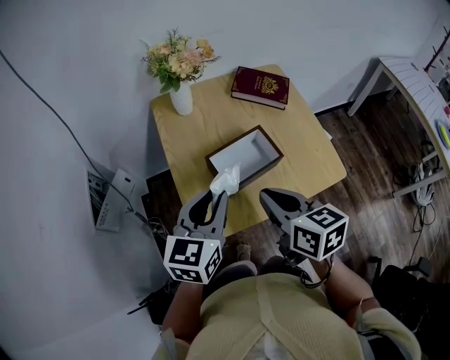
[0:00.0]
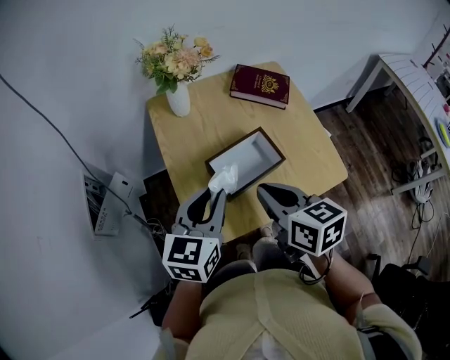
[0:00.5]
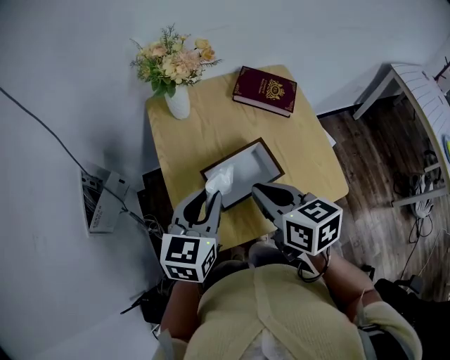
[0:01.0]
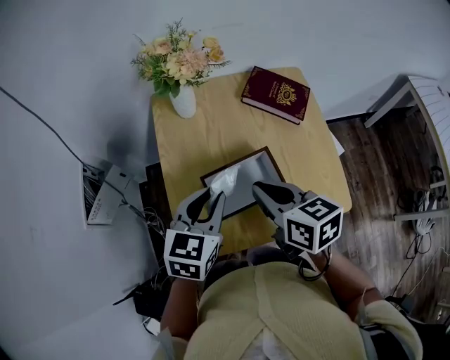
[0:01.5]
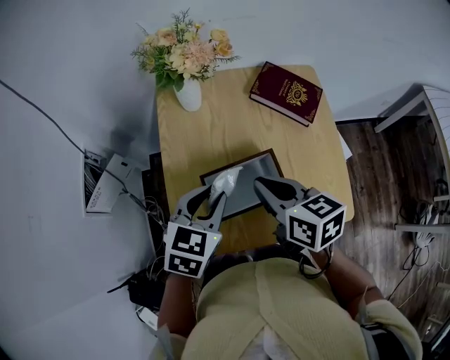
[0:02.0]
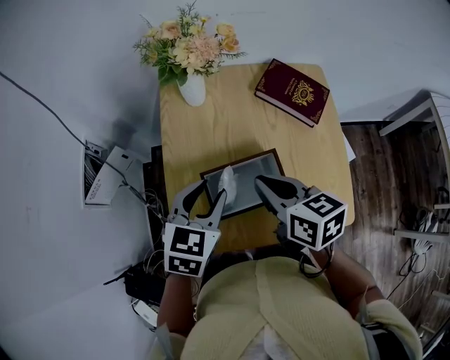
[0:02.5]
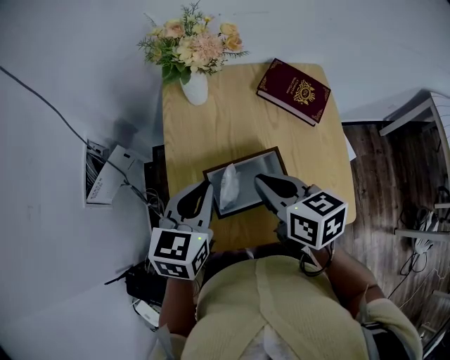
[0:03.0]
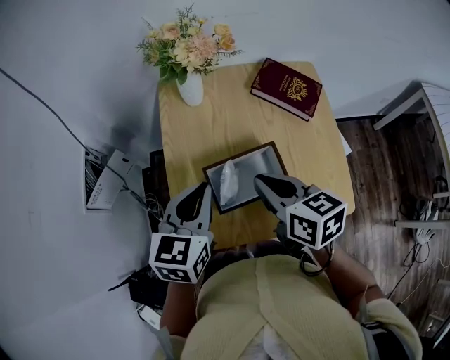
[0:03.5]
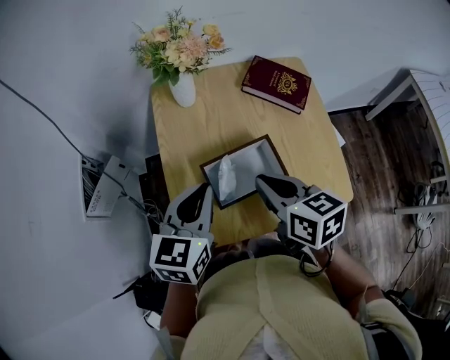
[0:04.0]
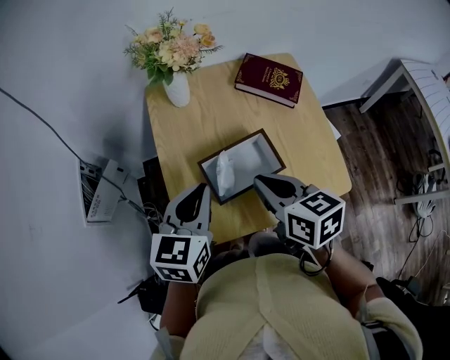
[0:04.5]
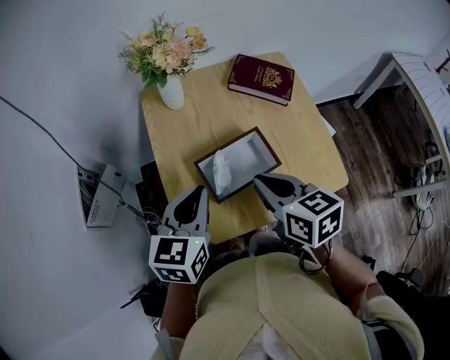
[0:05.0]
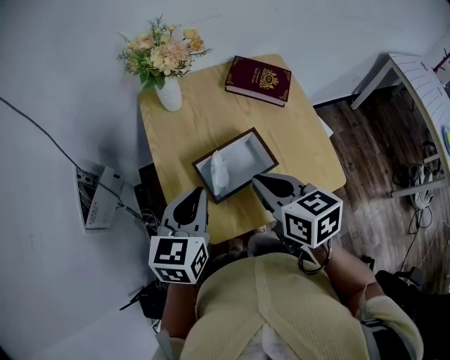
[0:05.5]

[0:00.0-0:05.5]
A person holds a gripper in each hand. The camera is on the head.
0:00.0 to 0:02.0: The left gripper heads forward and downward, covering about 10 cm, and swivels approximately 20 degrees. The right gripper travels forward by approximately 15 cm.
0:02.0 to 0:03.5: The left gripper shifts by approximately 5 cm, and opens, then closes again.
0:03.5 to 0:05.5: The grippers make only small movements.

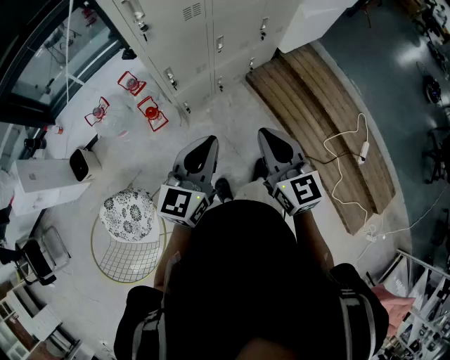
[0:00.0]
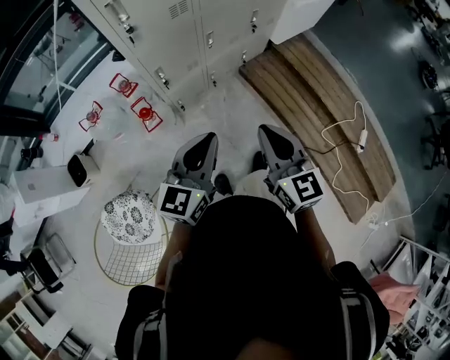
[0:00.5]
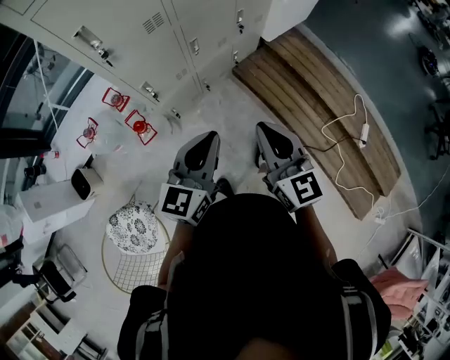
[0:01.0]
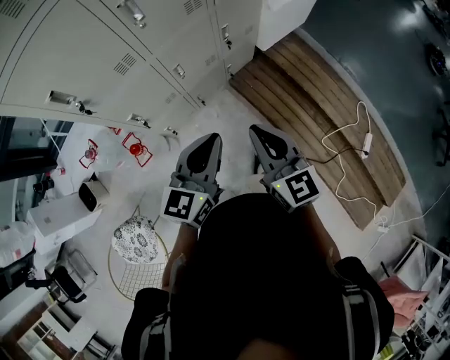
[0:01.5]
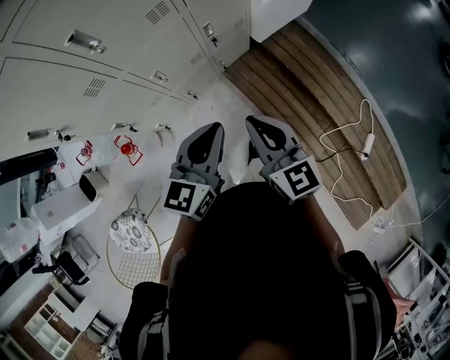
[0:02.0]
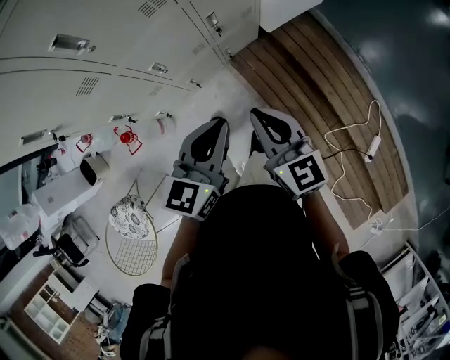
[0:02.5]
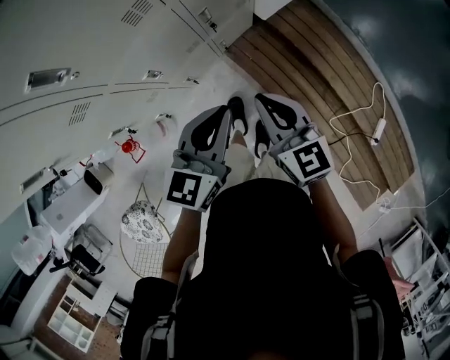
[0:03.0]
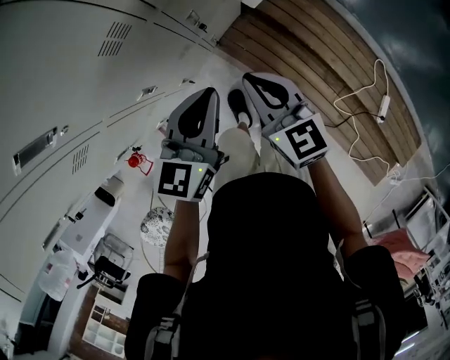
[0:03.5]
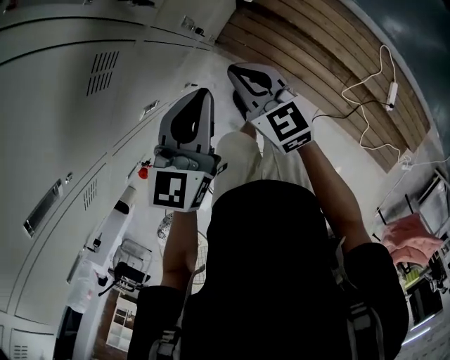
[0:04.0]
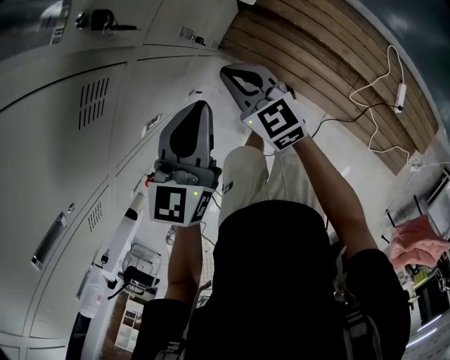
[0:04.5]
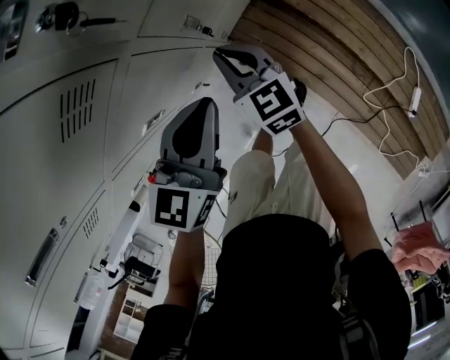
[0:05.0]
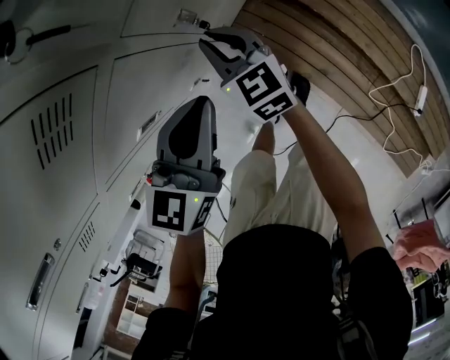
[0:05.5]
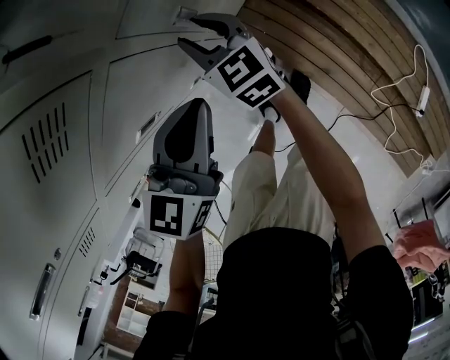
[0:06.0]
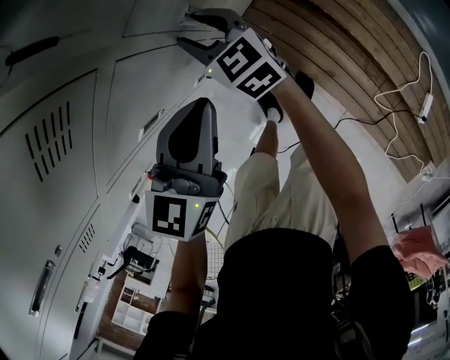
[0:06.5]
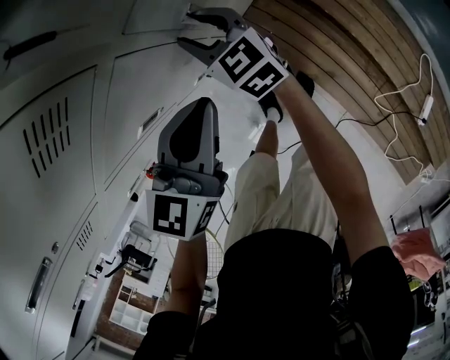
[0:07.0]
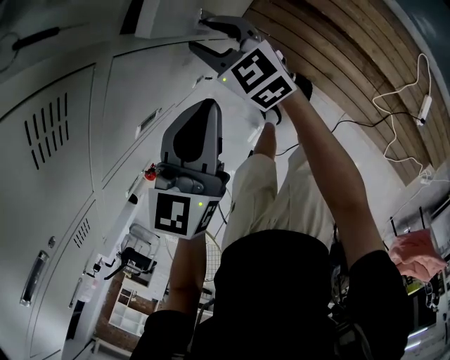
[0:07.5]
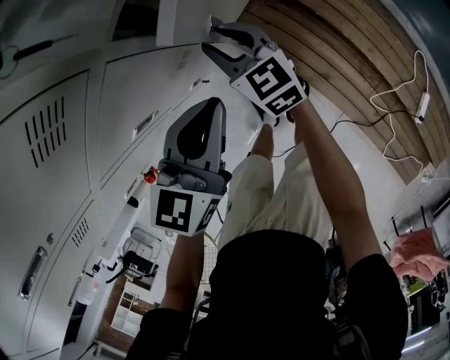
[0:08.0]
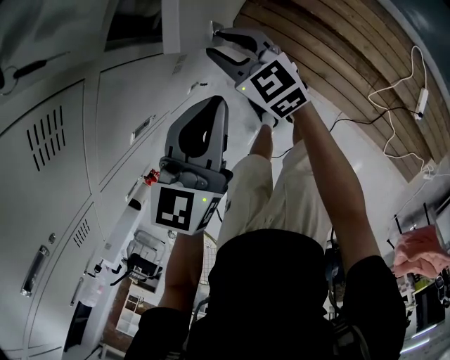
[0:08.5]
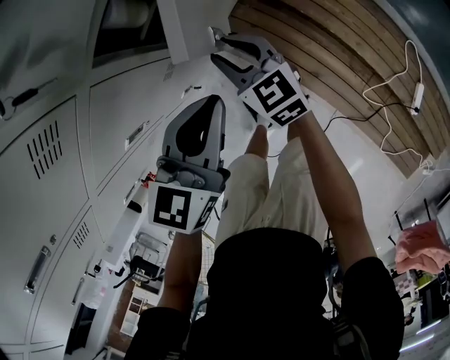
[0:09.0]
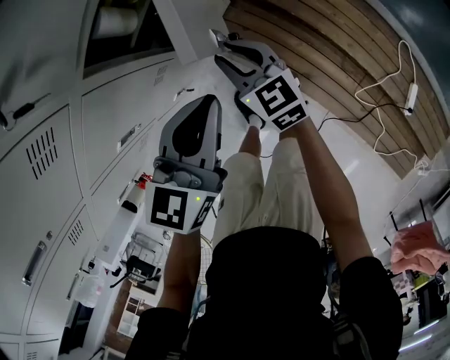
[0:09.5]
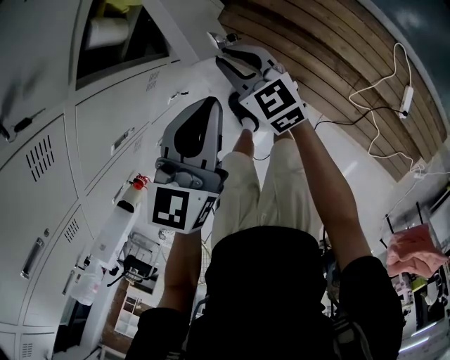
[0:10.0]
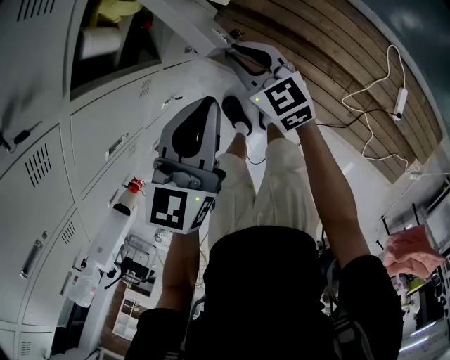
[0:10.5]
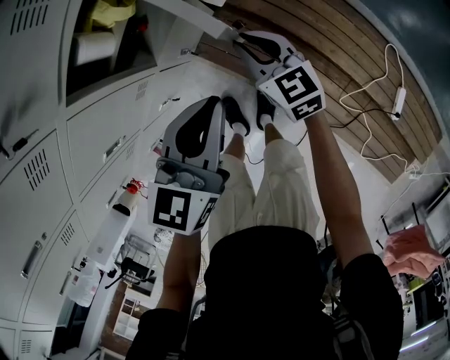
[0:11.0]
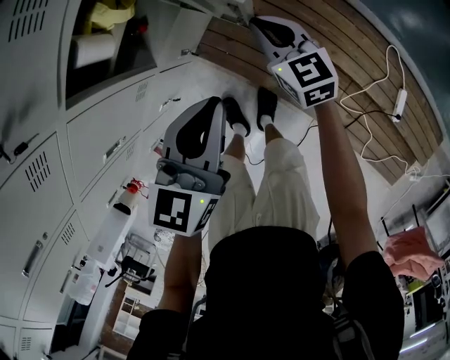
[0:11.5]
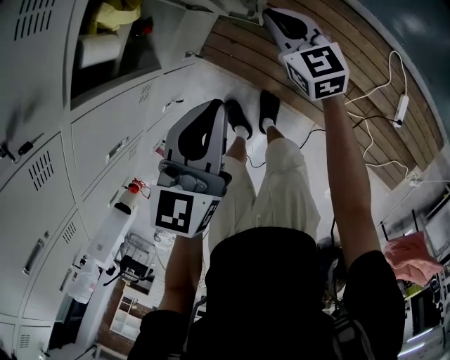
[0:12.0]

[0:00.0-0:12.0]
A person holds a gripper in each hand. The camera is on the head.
0:00.0 to 0:02.0: The left gripper travels to the right and forward by about 40 cm. Meanwhile the right gripper is displaced forward and to the right by about 35 cm.
0:02.0 to 0:04.0: Both grippers move forward and downward, roughly 30 cm.
0:04.0 to 0:06.0: The right gripper moves downward, forward and to the left, approximately 20 cm, and opens. Meanwhile the left gripper heads downward, covering roughly 10 cm.
0:06.0 to 0:08.0: The right gripper changes place by about 5 cm.
0:08.0 to 0:10.0: The two grippers go some 15 cm to the right.
0:10.0 to 0:12.0: The right gripper heads to the right and forward, covering approximately 20 cm. Meanwhile the left gripper heads to the right, covering some 5 cm.

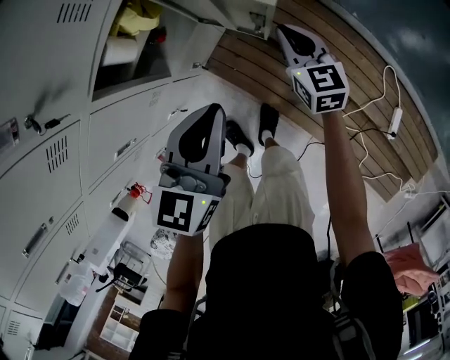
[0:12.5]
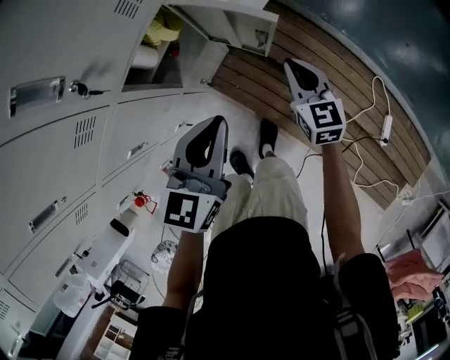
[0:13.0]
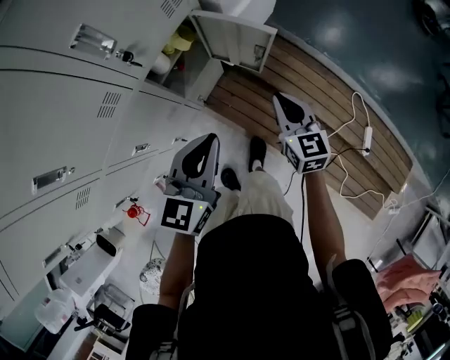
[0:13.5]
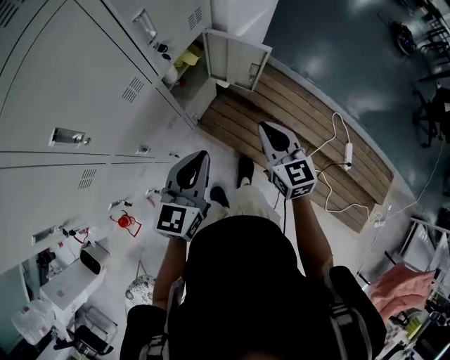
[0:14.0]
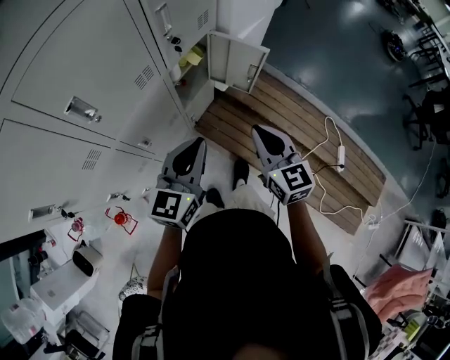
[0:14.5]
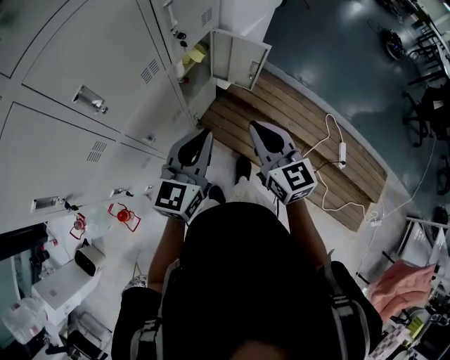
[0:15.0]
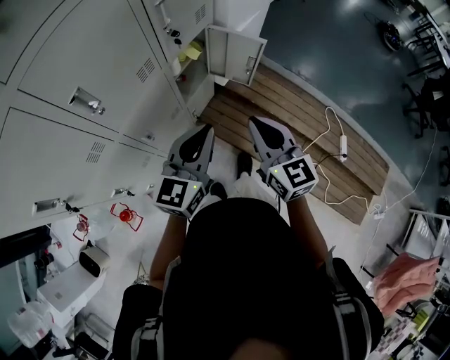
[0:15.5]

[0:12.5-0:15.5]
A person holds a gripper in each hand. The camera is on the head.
0:12.5 to 0:14.0: The right gripper is displaced backward and upward by roughly 35 cm. Meanwhile the left gripper shifts some 30 cm backward, to the left and upward.
0:14.0 to 0:15.5: The right gripper travels backward, upward and to the left by roughly 15 cm. Meanwhile the left gripper travels upward by approximately 5 cm.

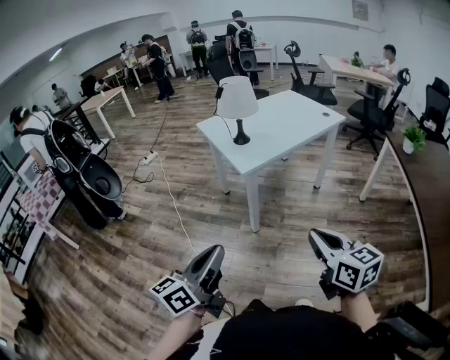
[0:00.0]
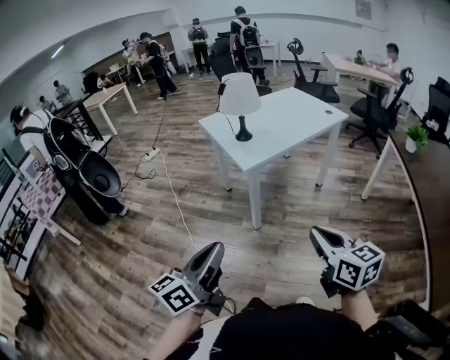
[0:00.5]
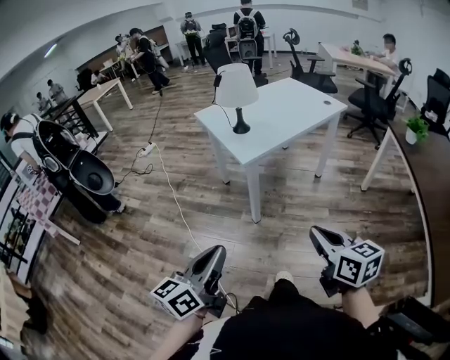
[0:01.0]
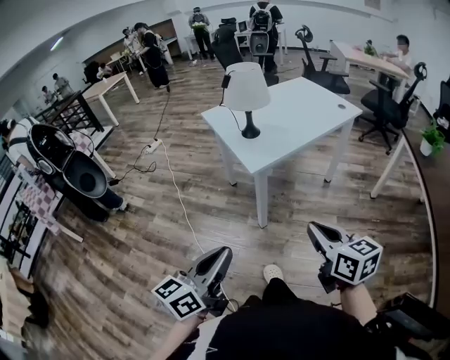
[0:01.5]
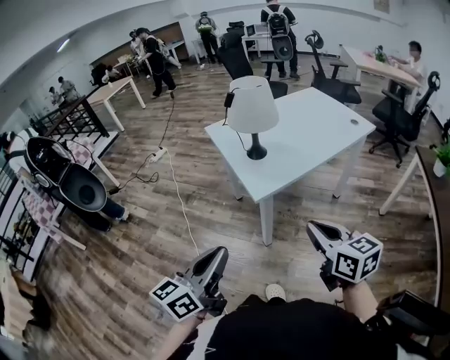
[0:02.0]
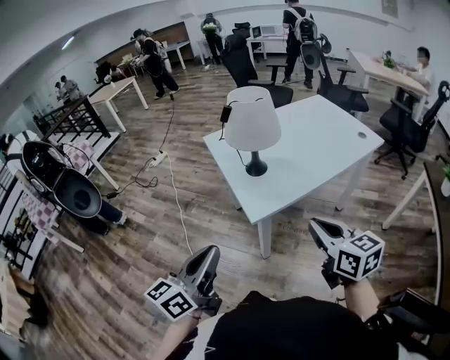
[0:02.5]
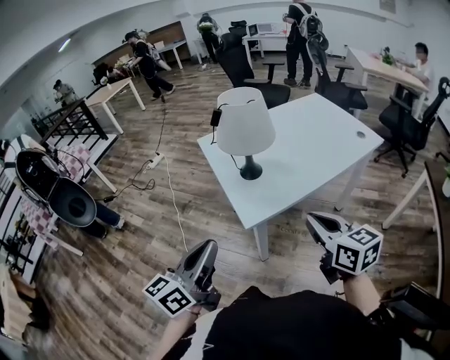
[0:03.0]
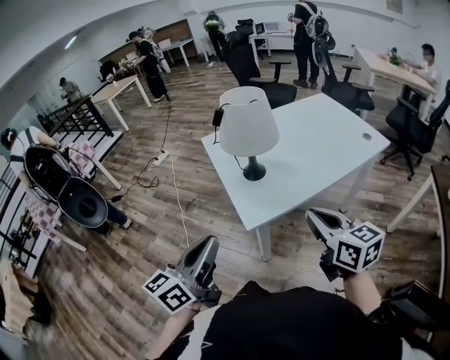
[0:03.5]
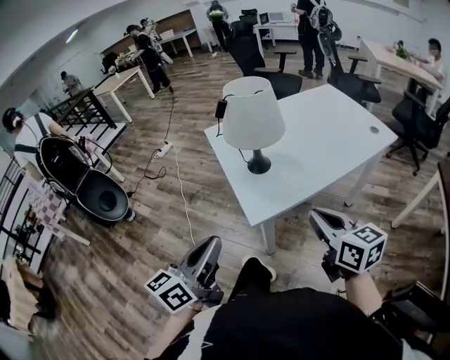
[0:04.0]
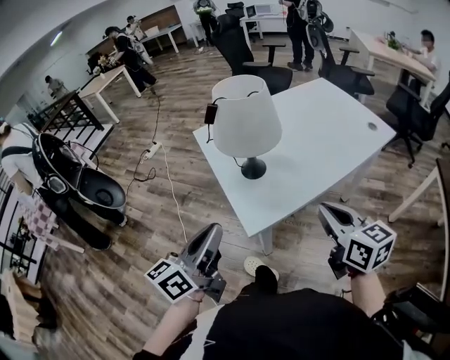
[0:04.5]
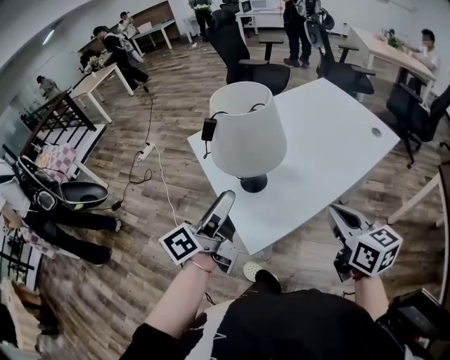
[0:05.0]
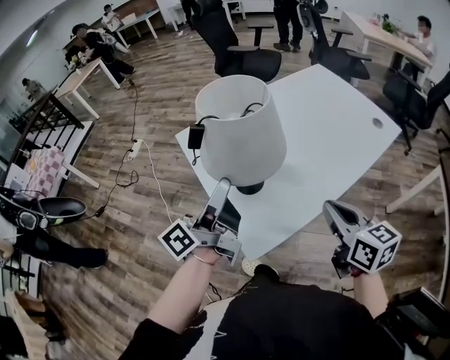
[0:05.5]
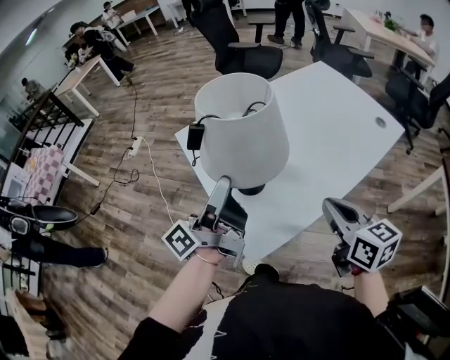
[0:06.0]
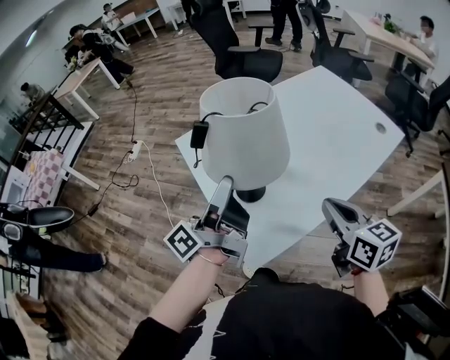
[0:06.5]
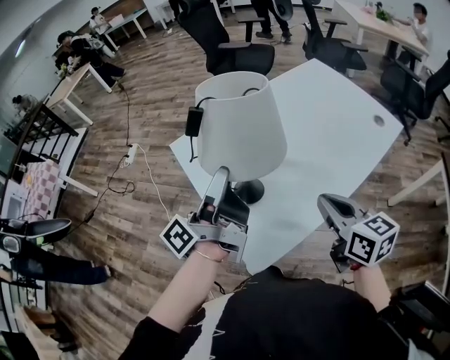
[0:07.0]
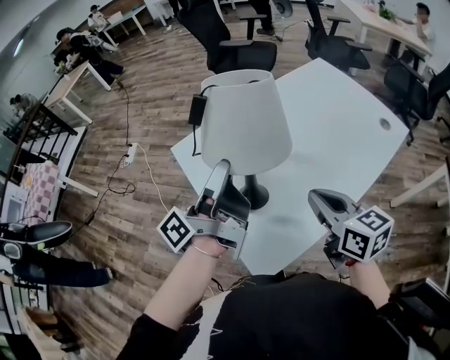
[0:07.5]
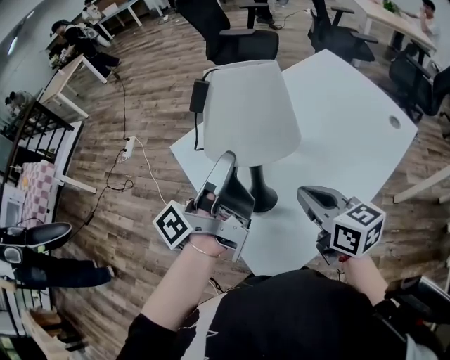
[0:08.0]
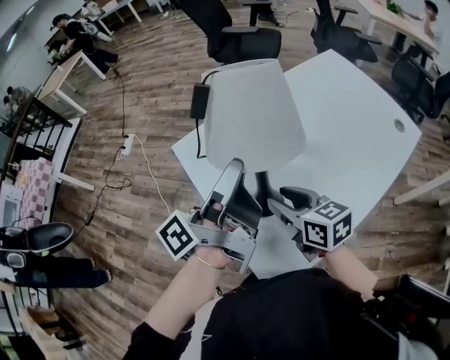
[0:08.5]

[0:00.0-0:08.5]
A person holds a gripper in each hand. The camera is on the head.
0:00.0 to 0:02.0: The two grippers go approximately 20 cm forward.
0:02.0 to 0:04.0: Both grippers move forward, approximately 15 cm.
0:04.0 to 0:06.5: The right gripper shifts some 20 cm forward. The left gripper travels forward by about 35 cm, twists about 40 degrees counterclockwise, seen from behind, and opens.
0:06.5 to 0:08.5: The right gripper shifts about 25 cm forward, to the left and downward, and opens its fingers, while the left gripper moves forward, some 10 cm.
